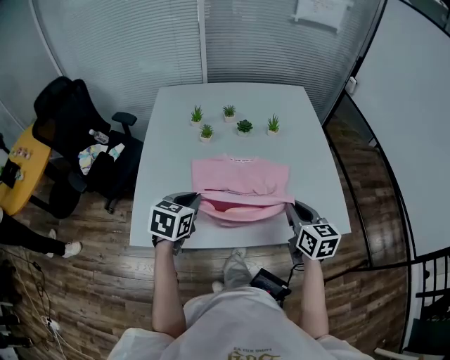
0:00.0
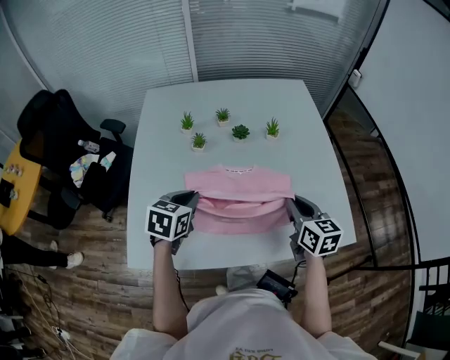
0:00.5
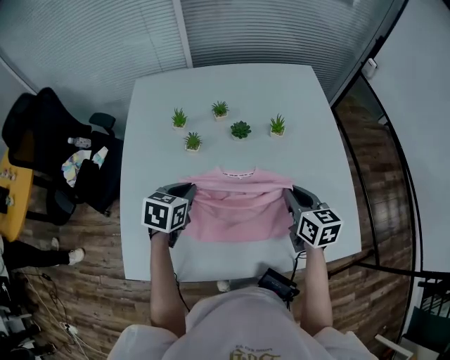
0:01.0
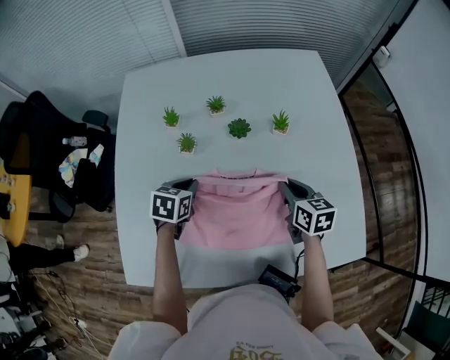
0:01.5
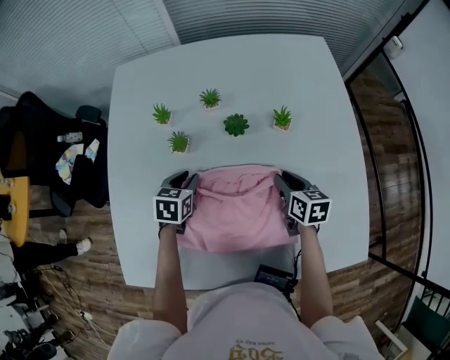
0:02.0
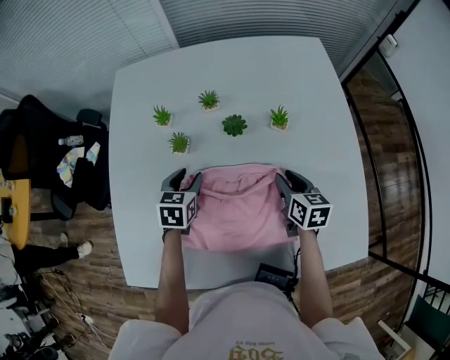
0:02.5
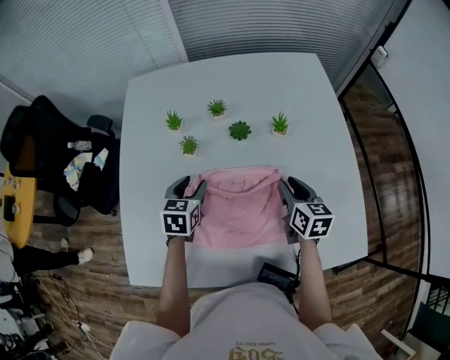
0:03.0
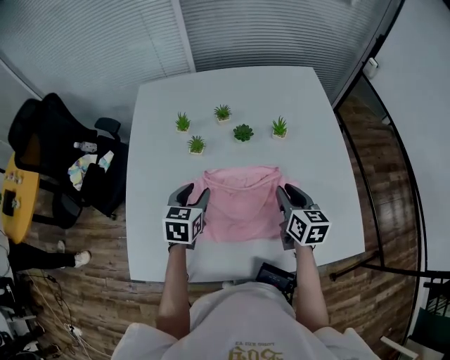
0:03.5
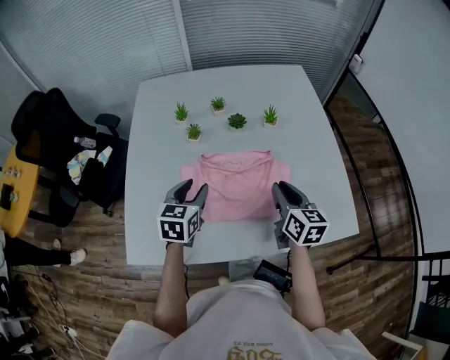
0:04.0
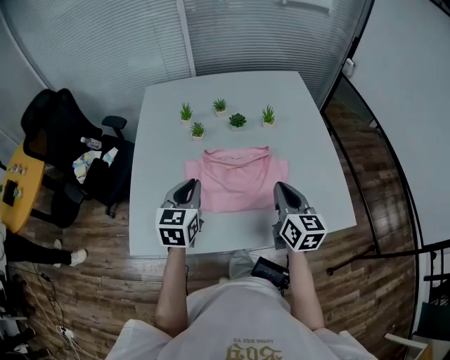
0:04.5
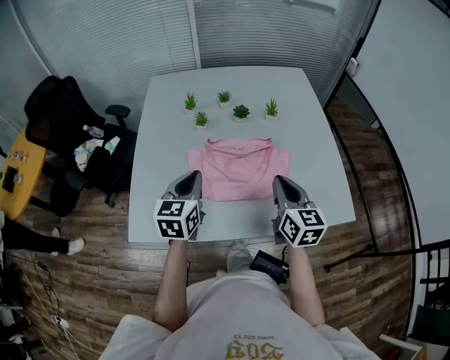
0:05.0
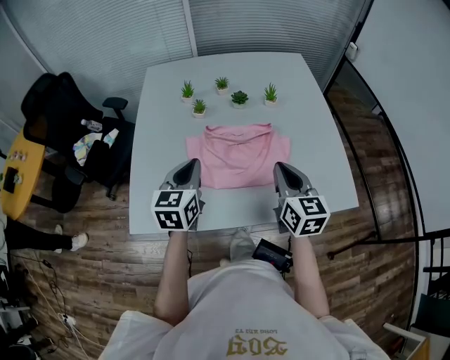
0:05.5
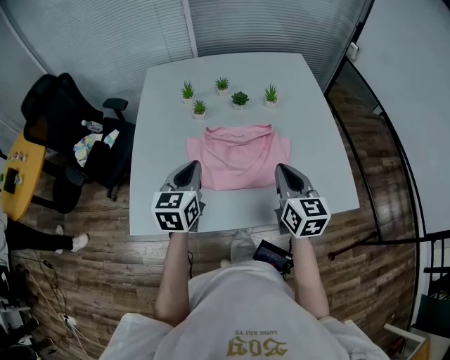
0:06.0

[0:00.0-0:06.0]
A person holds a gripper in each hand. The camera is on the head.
0:00.0 to 0:02.0: Both grippers travel together forward and downward, about 35 cm. The right gripper changes its angle by about 20 degrees.
0:02.0 to 0:04.0: Both grippers travel together backward and upward, roughly 25 cm. The left gripper rotates about 20 degrees. Meanwhile the right gripper turns by approximately 20 degrees.
0:04.0 to 0:06.0: Both grippers move backward and upward, roughly 10 cm. The left gripper closes.

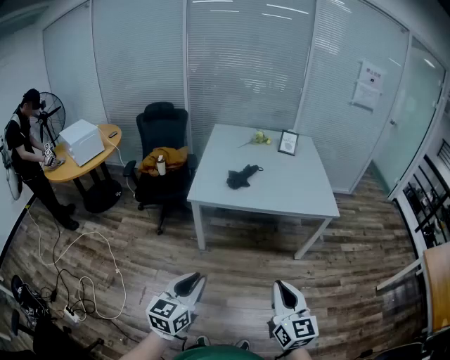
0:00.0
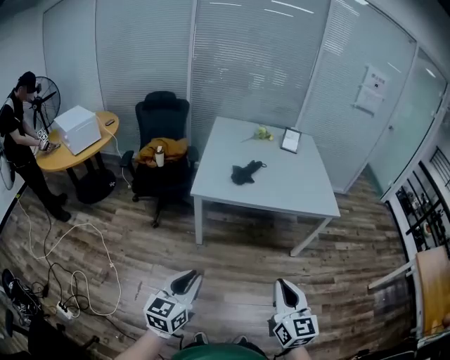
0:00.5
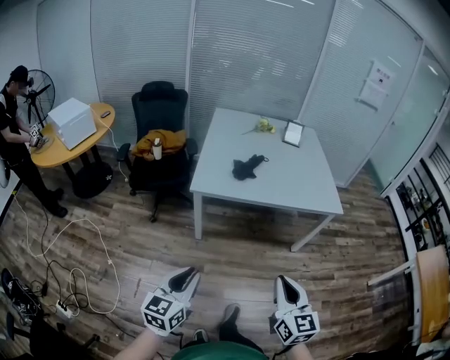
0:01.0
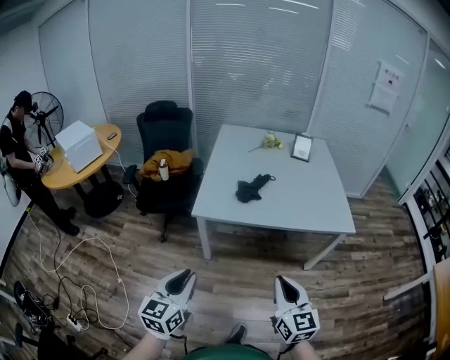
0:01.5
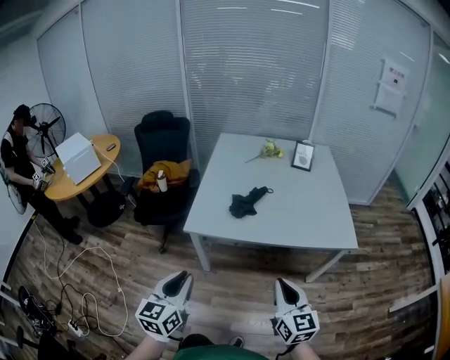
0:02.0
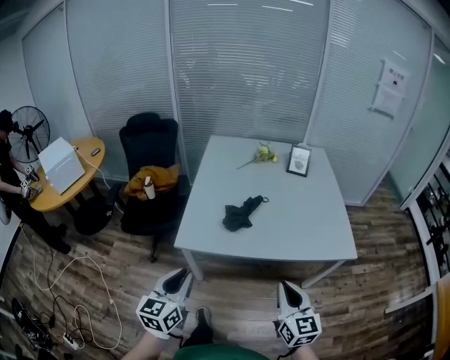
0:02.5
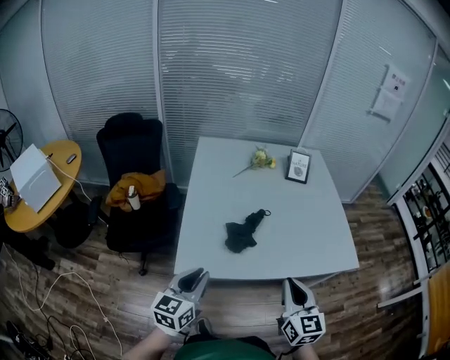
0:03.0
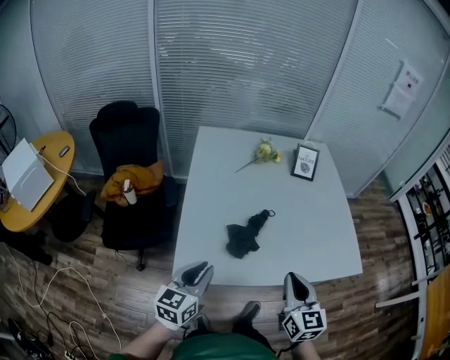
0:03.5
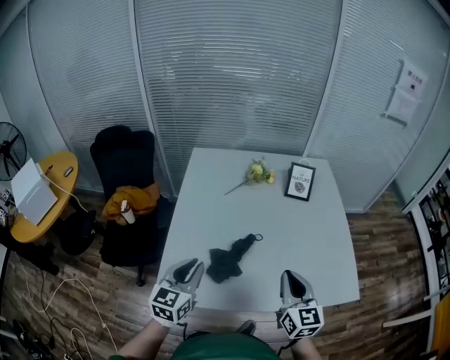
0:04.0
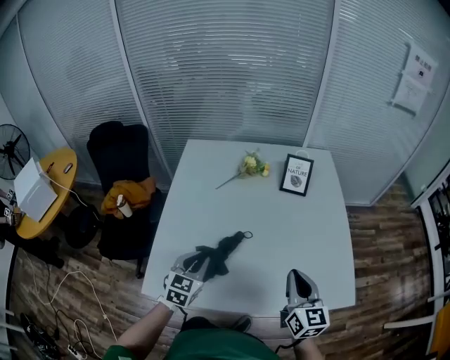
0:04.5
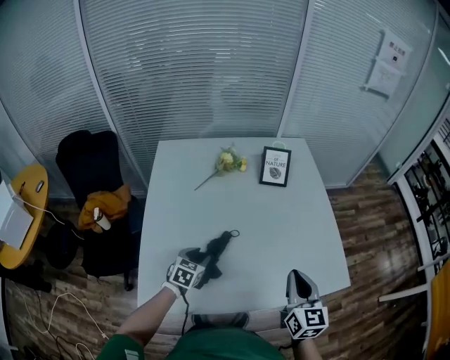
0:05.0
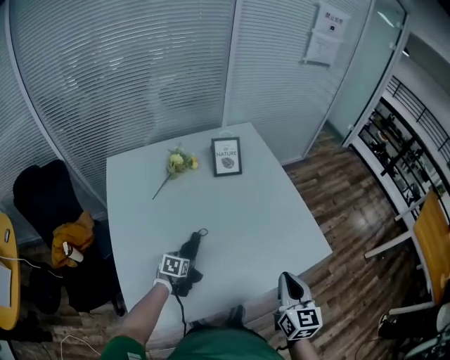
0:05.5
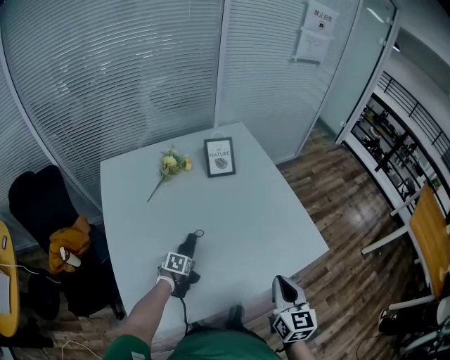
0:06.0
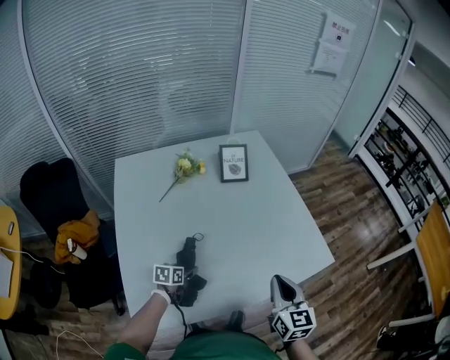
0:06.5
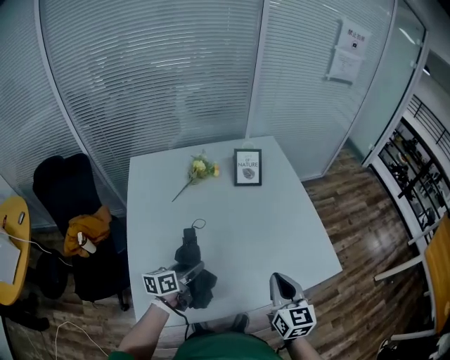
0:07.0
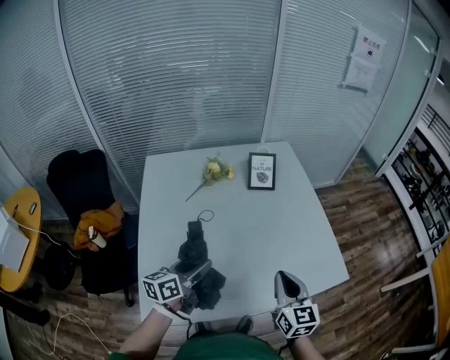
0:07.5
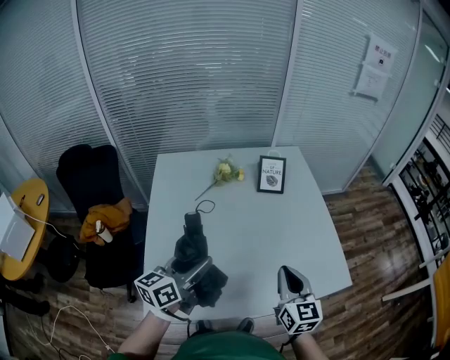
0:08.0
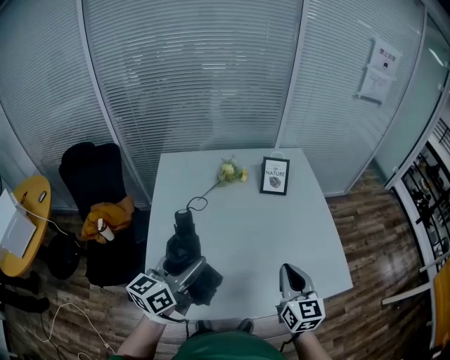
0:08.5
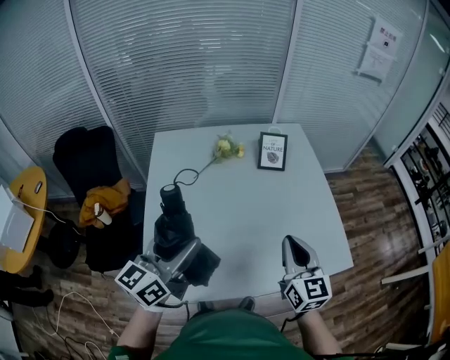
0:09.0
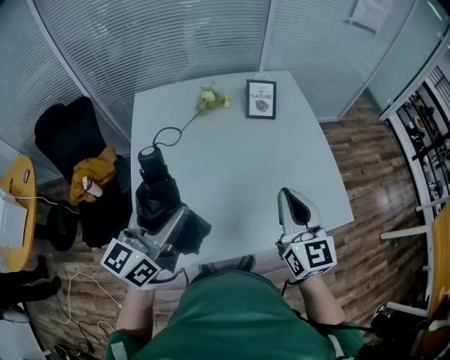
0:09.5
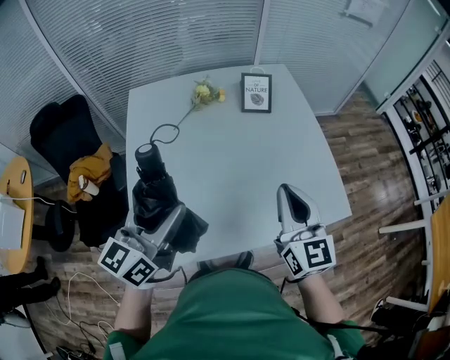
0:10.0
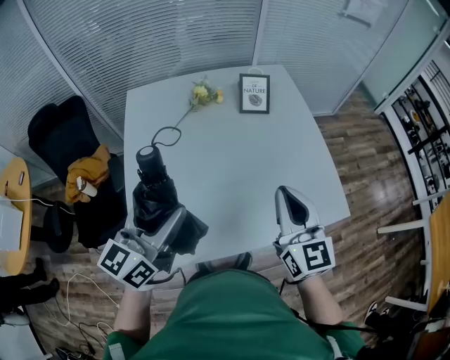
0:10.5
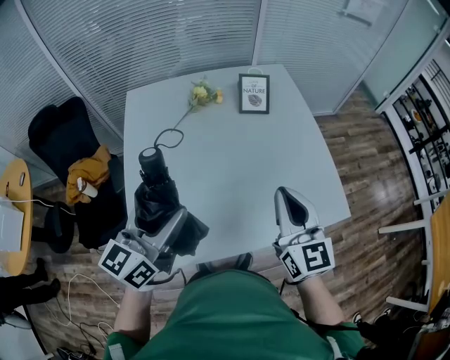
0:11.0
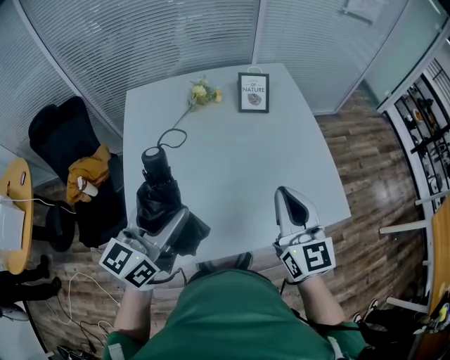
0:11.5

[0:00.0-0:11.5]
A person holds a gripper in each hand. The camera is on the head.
0:00.0 to 0:02.0: Both grippers travel together forward, about 25 cm.
0:02.0 to 0:04.0: Both grippers are carried forward, some 40 cm.
0:04.0 to 0:06.0: The right gripper moves some 10 cm, and turns by about 30 degrees; the left gripper shifts approximately 30 cm downward, tips its fingers downward by some 50 degrees, and opens its fingers.
0:06.0 to 0:07.5: The right gripper moves to the left, about 5 cm; the left gripper shifts roughly 30 cm upward, and angles its fingers upward, by approximately 50 degrees.
0:07.5 to 0:09.5: The left gripper travels upward by some 15 cm, and turns by roughly 30 degrees. Meanwhile the right gripper shifts some 5 cm upward.
0:09.5 to 0:11.5: The grippers move only a little.

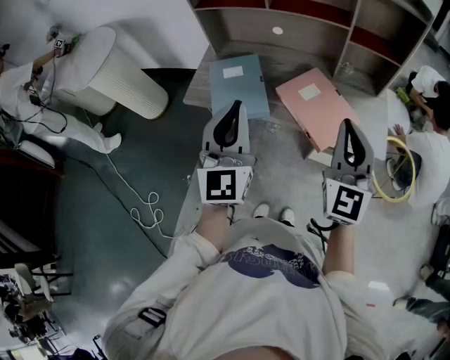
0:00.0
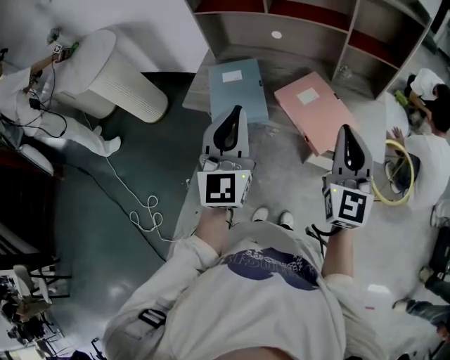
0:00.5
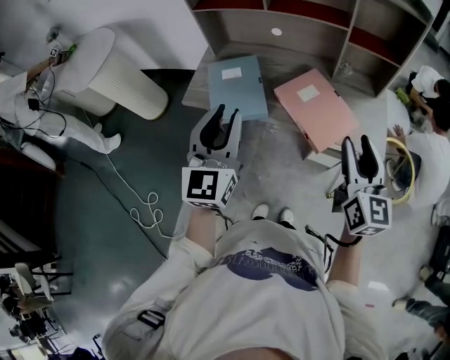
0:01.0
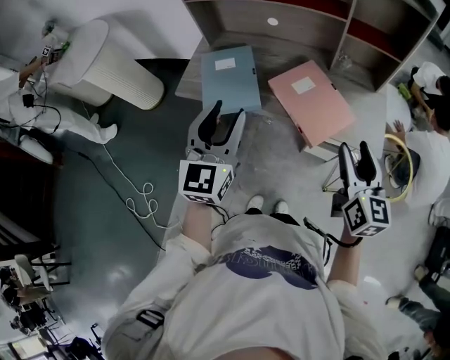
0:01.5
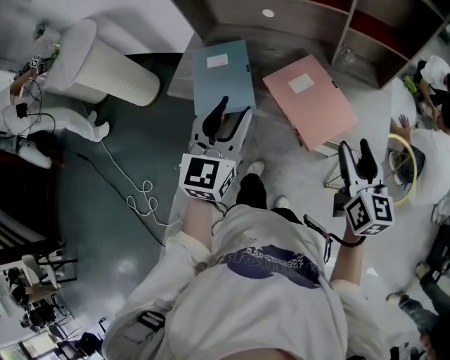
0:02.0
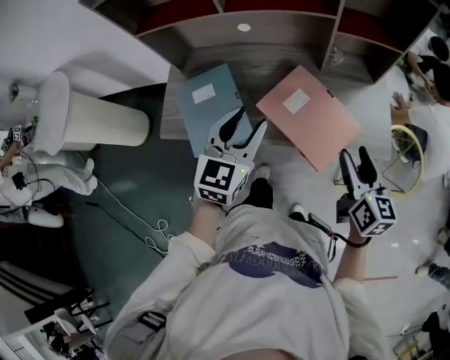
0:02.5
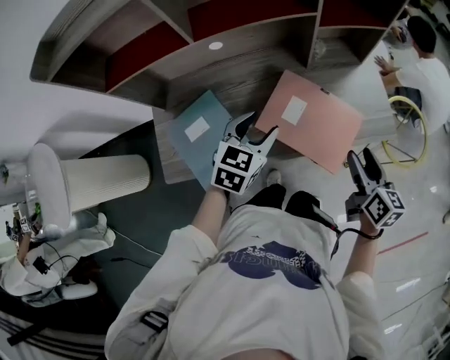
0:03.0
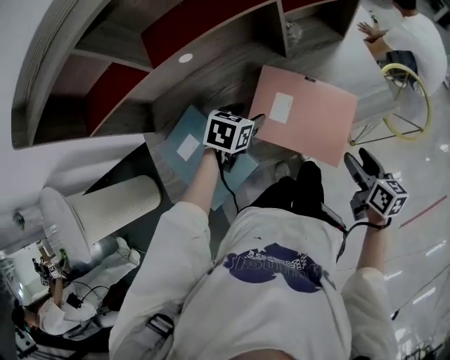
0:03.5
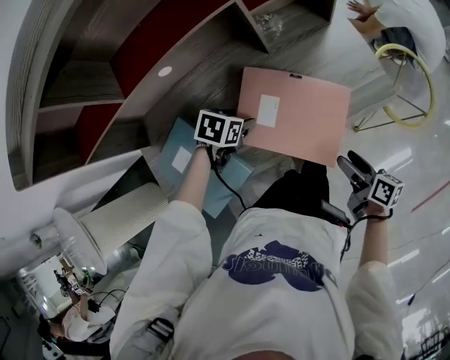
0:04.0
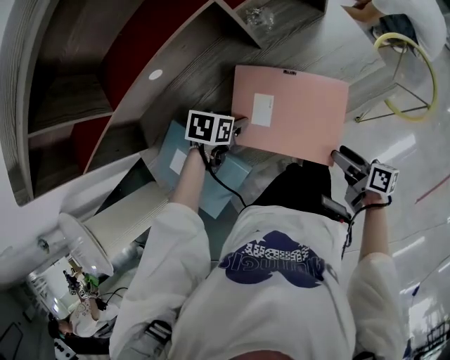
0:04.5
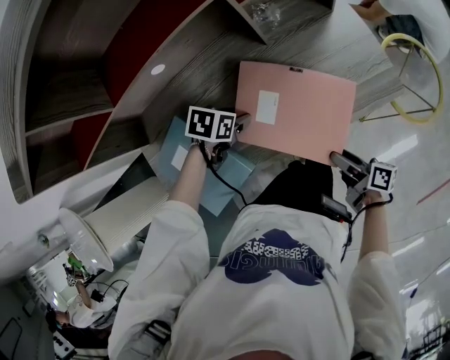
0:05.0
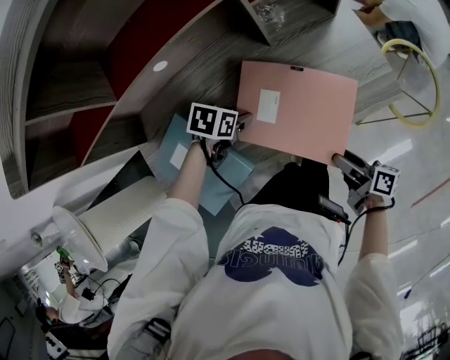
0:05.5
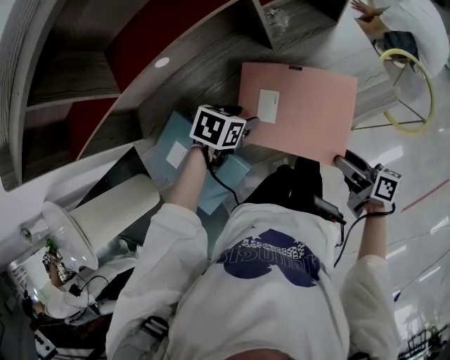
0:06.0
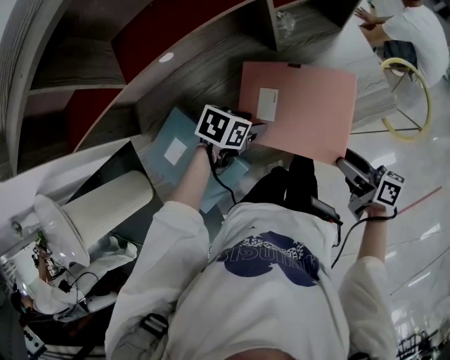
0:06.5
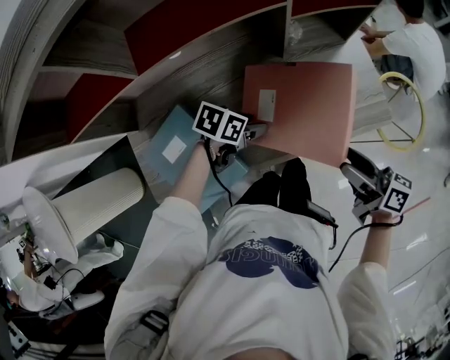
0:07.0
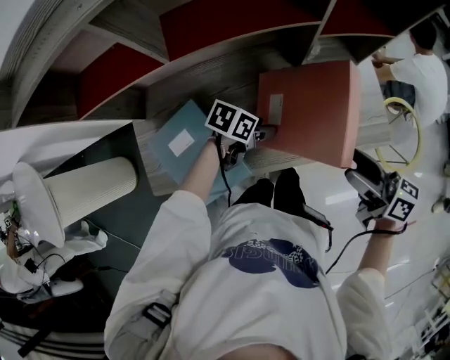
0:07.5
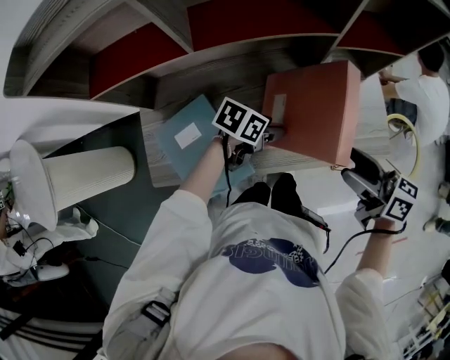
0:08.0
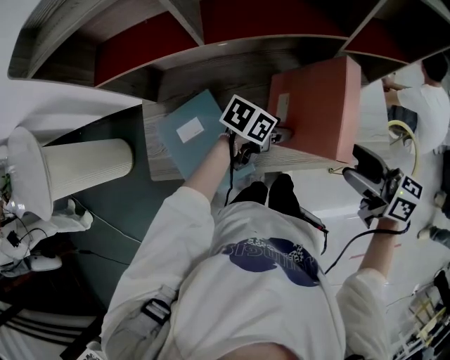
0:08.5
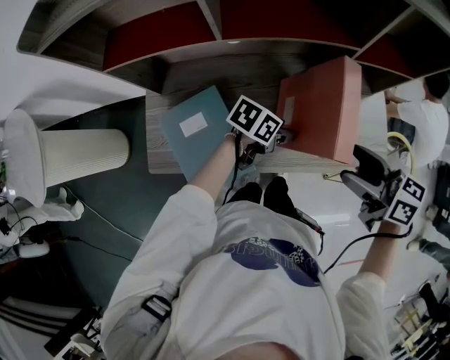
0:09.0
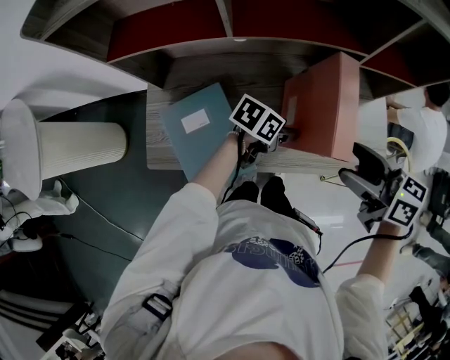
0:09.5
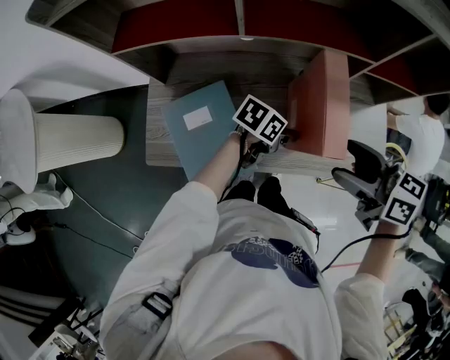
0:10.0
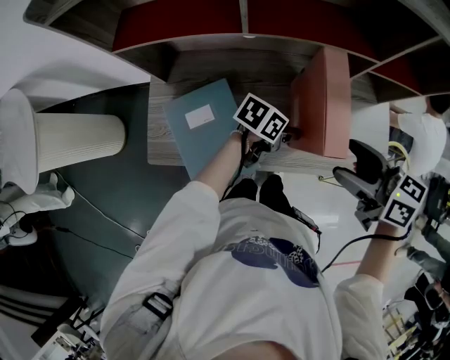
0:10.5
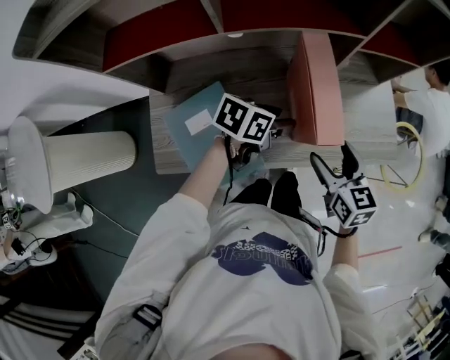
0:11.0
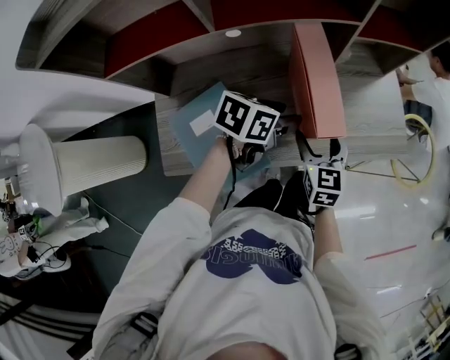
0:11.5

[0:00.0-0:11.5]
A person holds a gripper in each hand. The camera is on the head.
0:00.0 to 0:02.0: The right gripper goes some 15 cm downward and to the right, rotates approximately 40 degrees, and opens. Meanwhile the left gripper heads downward, forward and to the right, covering about 10 cm, turns by about 20 degrees, and opens.
0:02.0 to 0:04.0: Both grippers move downward, about 30 cm. The right gripper rotates around the line of its fingers by roughly 60 degrees, clockwise from behind. Meanwhile the left gripper tips its fingers downward by roughly 60 degrees.
0:04.0 to 0:06.0: The grippers stay close to where they were, moving slightly.
0:06.0 to 0:07.5: The left gripper rotates about 20 degrees, while the right gripper goes some 15 cm upward, and swivels some 30 degrees.
0:07.5 to 0:09.5: The right gripper ends up some 10 cm from where it was, and changes its angle by some 20 degrees. The left gripper travels upward by about 5 cm.
0:09.5 to 0:11.5: The left gripper ends up approximately 5 cm from where it was. Meanwhile the right gripper moves downward, roughly 15 cm, and changes its angle by some 50 degrees.
